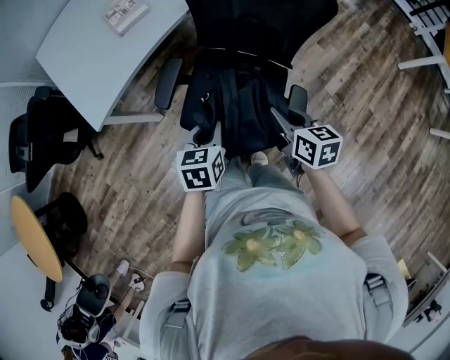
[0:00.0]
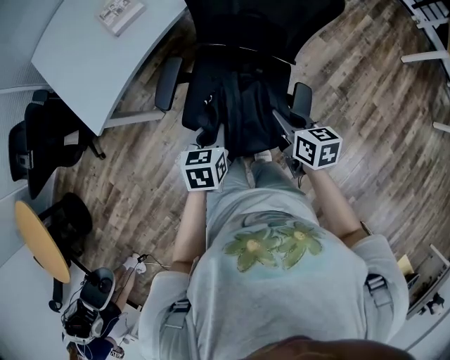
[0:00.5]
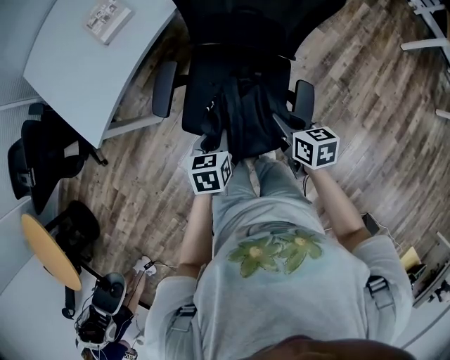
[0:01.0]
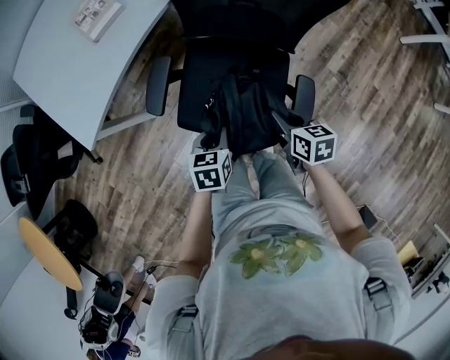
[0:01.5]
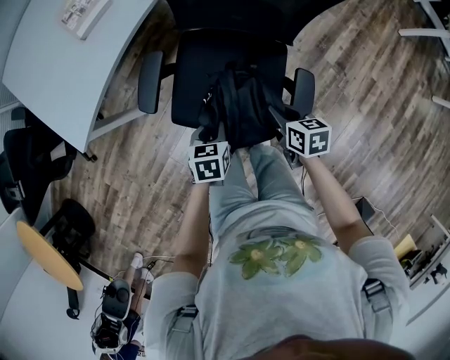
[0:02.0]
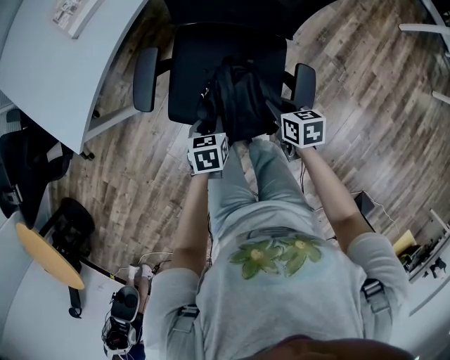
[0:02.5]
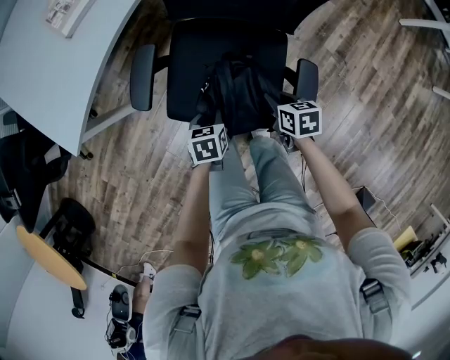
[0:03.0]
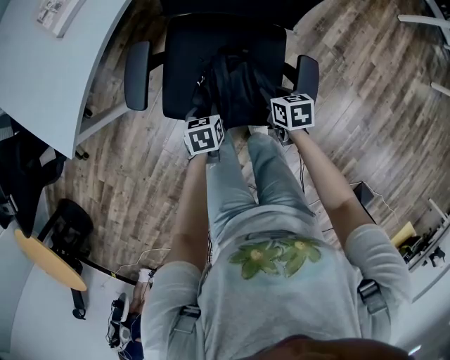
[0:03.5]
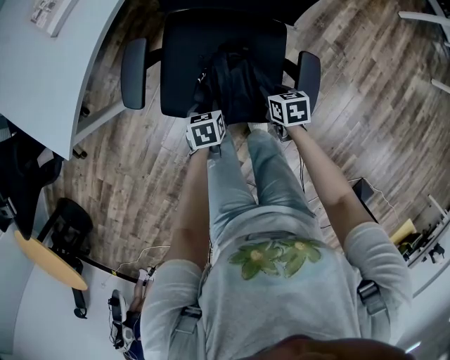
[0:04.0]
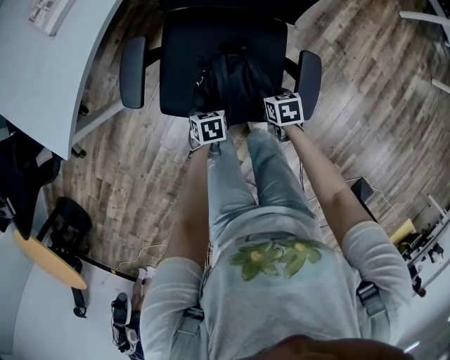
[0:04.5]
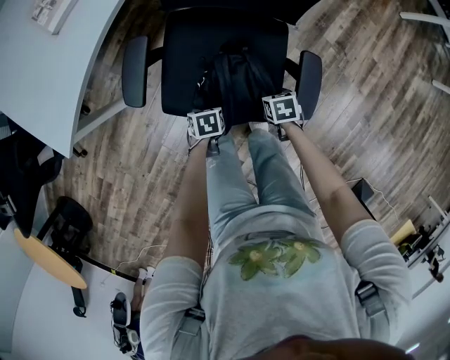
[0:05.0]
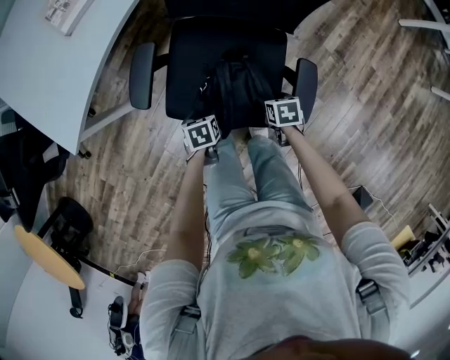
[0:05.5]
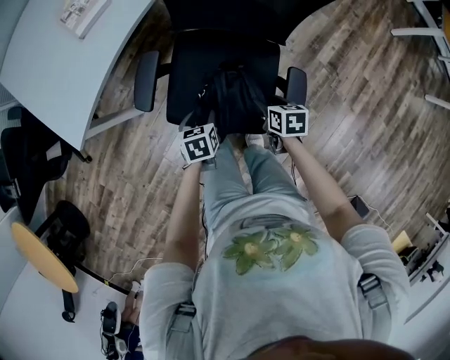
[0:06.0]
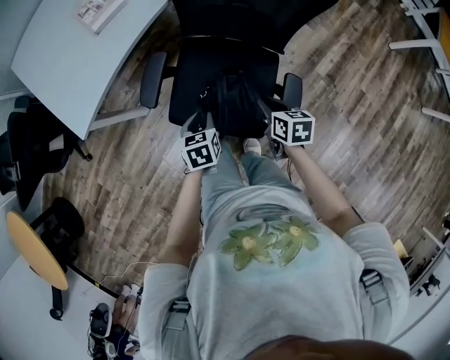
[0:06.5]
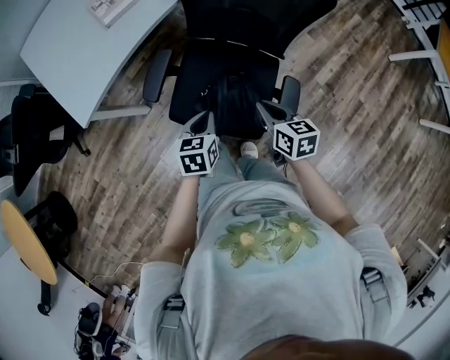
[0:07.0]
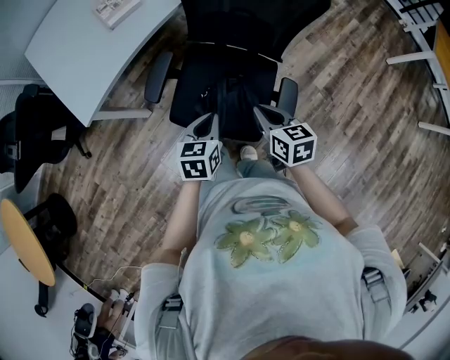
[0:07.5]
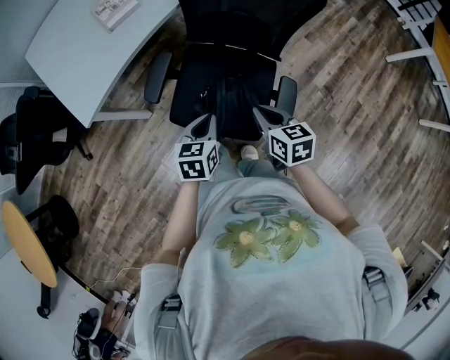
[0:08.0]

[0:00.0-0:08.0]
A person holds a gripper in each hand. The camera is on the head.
0:00.0 to 0:02.0: The two grippers go roughly 15 cm downward.
0:02.0 to 0:04.0: The grippers both shift downward by some 15 cm.
0:04.0 to 0:06.0: Both grippers move upward, about 10 cm. The left gripper opens its fingers; the right gripper opens its fingers.
0:06.0 to 0:08.0: The grippers both shift upward by some 15 cm. The left gripper turns by some 20 degrees, and closes; the right gripper swivels roughly 30 degrees, and closes its fingers.

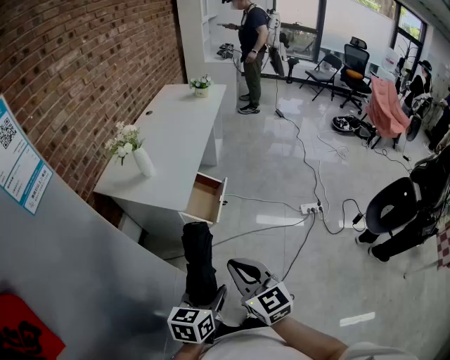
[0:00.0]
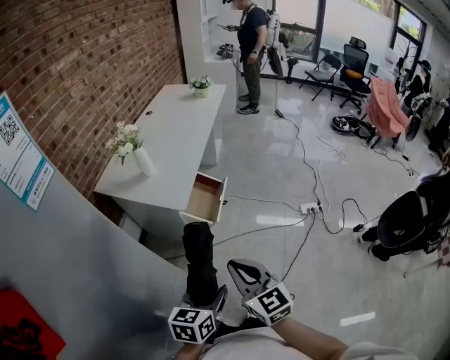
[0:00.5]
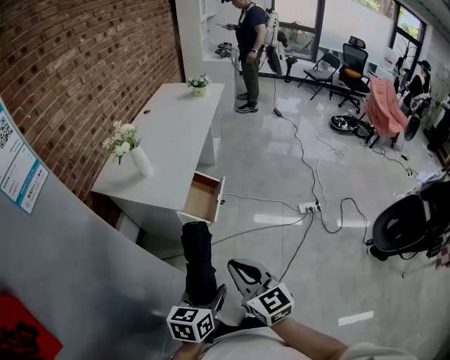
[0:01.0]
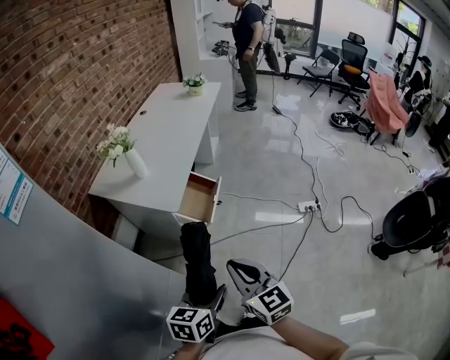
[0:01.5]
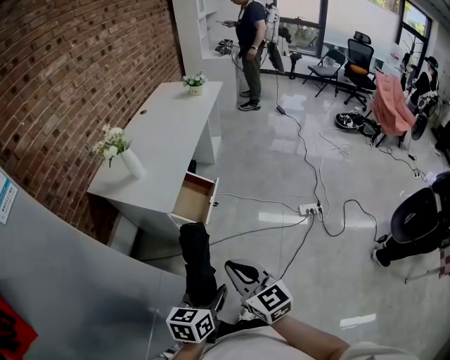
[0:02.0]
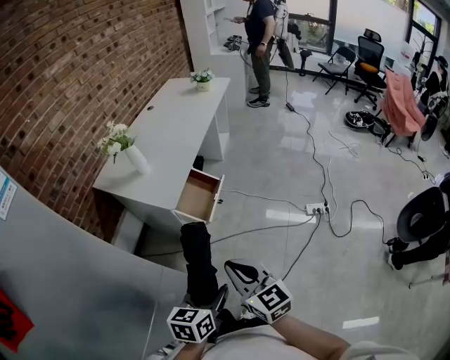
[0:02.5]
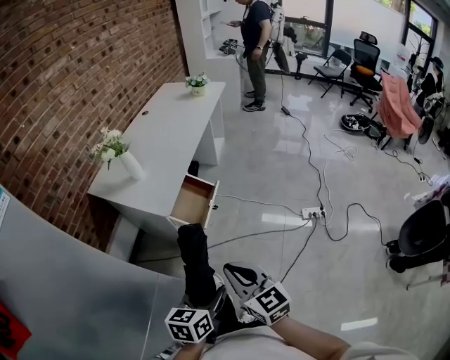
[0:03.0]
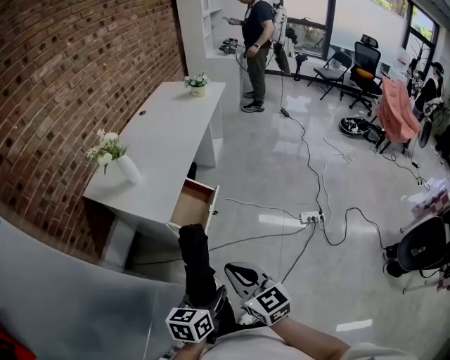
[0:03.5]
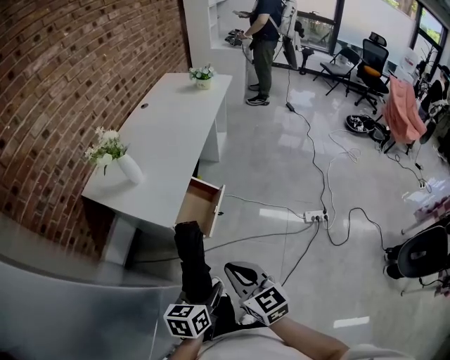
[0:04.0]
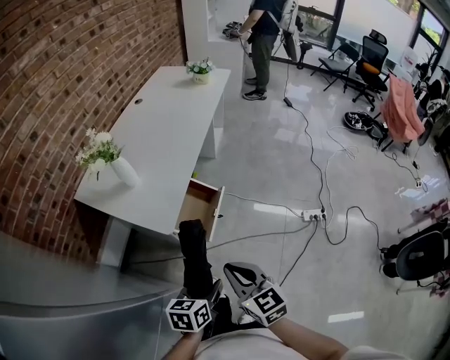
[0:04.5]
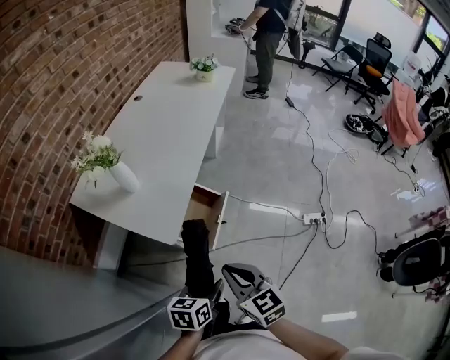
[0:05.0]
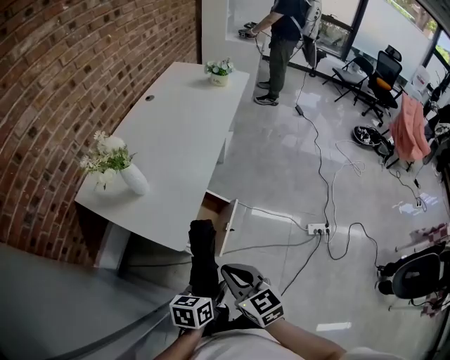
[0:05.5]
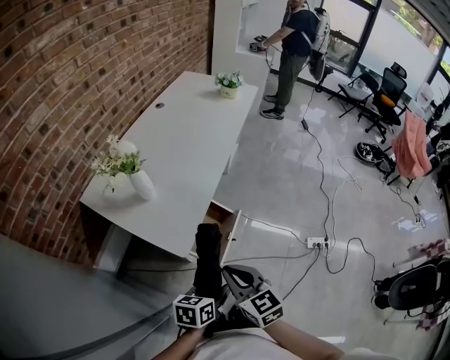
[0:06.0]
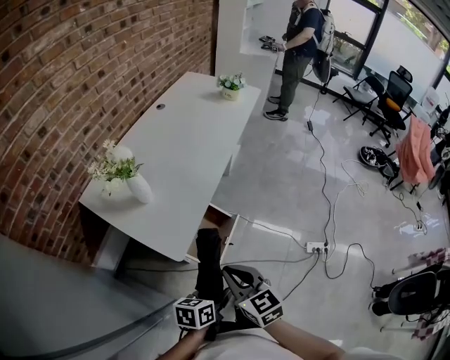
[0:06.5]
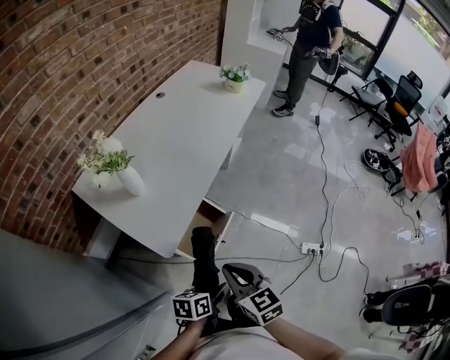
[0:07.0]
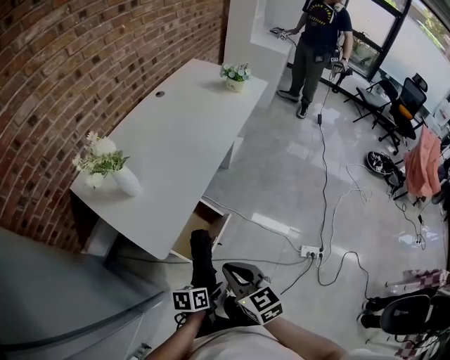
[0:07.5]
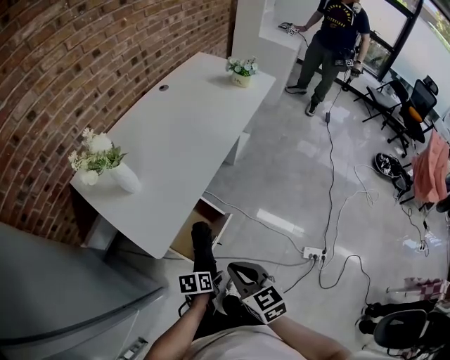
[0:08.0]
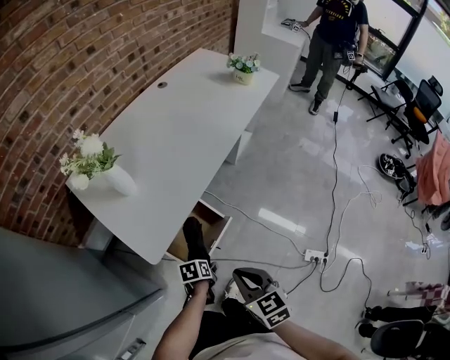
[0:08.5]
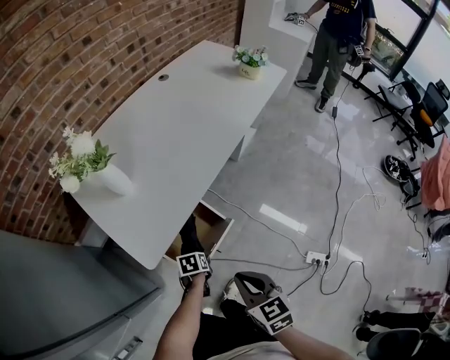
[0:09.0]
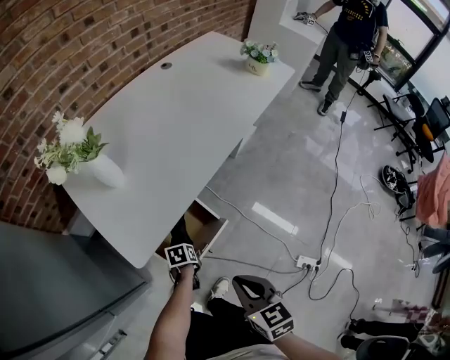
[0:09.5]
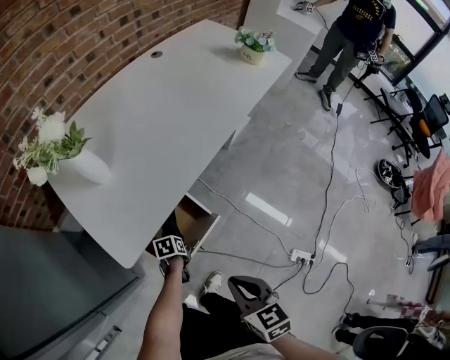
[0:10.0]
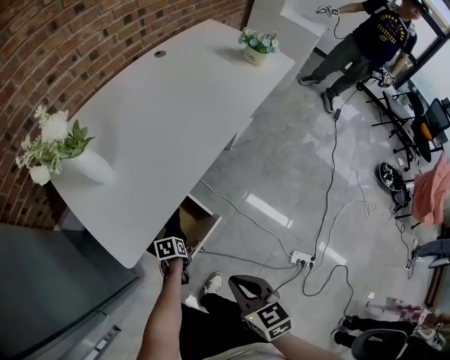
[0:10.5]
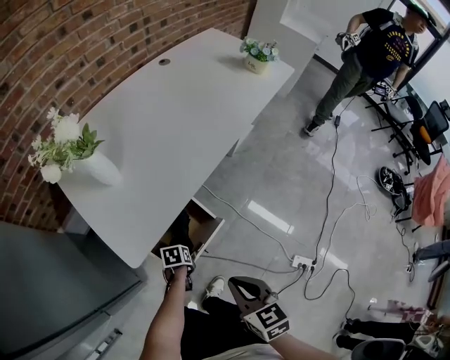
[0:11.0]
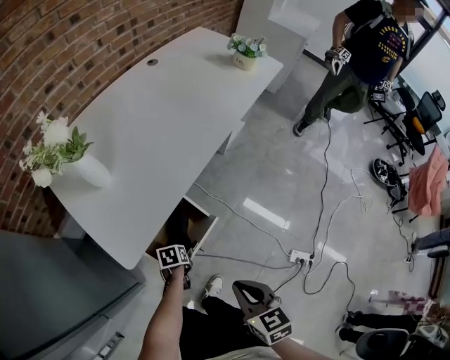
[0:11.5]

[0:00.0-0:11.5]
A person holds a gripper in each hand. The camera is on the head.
0:00.0 to 0:02.0: Both grippers move to the right, some 10 cm.
0:02.0 to 0:04.0: Both grippers travel together forward, roughly 10 cm.
0:04.0 to 0:06.0: The left gripper is displaced forward by about 15 cm. Meanwhile the right gripper moves forward and to the left, roughly 20 cm.
0:06.0 to 0:07.5: The right gripper shifts roughly 10 cm to the right and forward. The left gripper goes about 10 cm downward and to the right, and changes its angle by approximately 20 degrees.
0:07.5 to 0:09.5: The right gripper travels downward, to the right and forward by some 10 cm. Meanwhile the left gripper is displaced downward and forward by some 25 cm, and rotates roughly 30 degrees.
0:09.5 to 0:11.5: There are only small adjustments of the grippers.

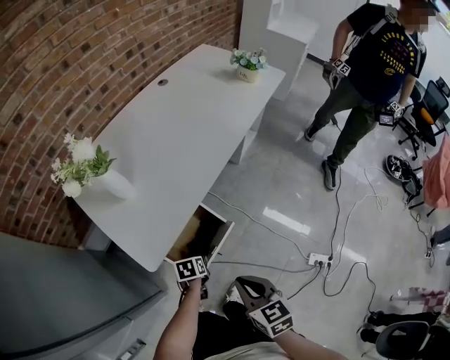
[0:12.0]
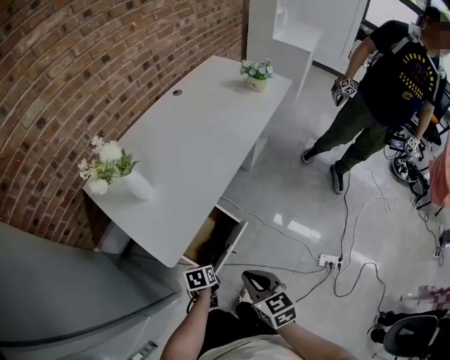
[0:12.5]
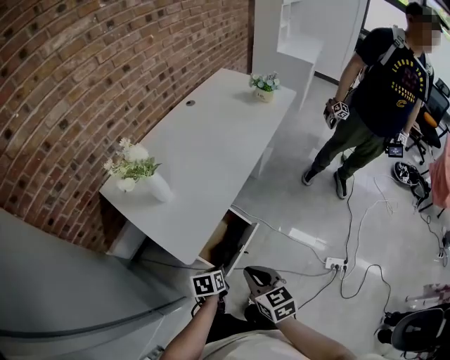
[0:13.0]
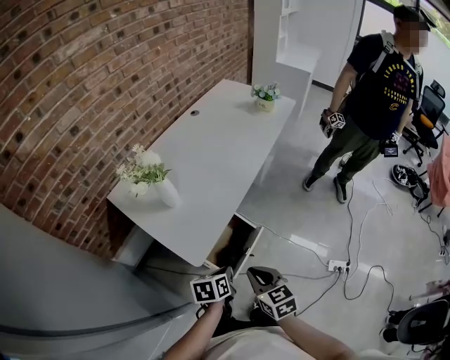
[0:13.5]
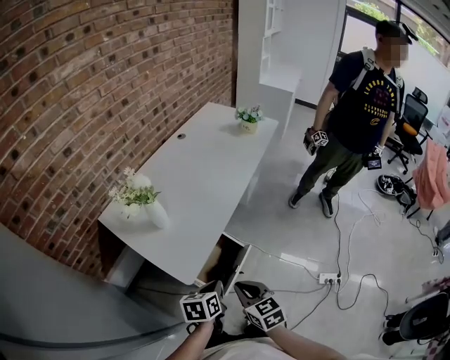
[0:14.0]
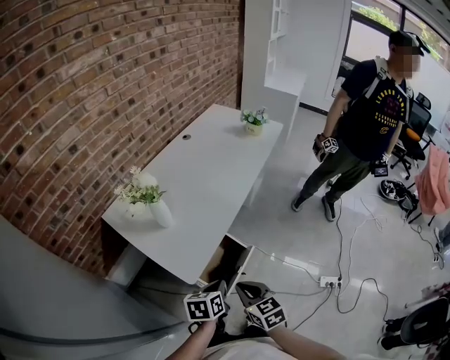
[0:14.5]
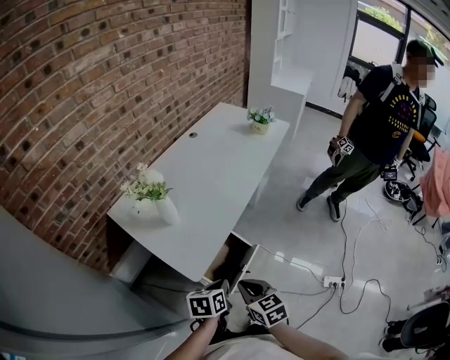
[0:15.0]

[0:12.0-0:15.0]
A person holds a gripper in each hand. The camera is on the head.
0:12.0 to 0:13.5: The left gripper travels upward by approximately 20 cm, and closes. The right gripper moves to the left, approximately 10 cm.
0:13.5 to 0:15.0: There are only small adjustments of the grippers.

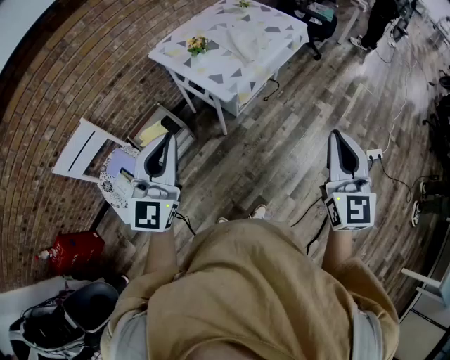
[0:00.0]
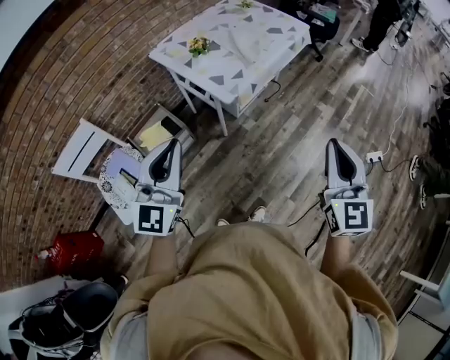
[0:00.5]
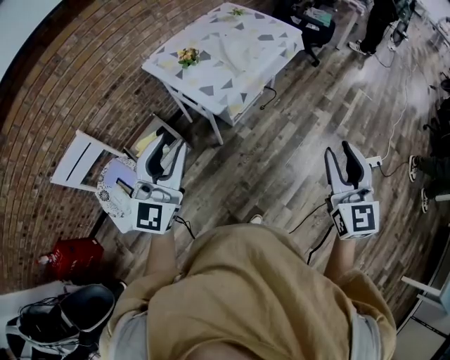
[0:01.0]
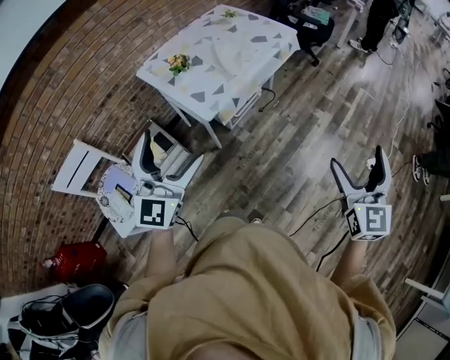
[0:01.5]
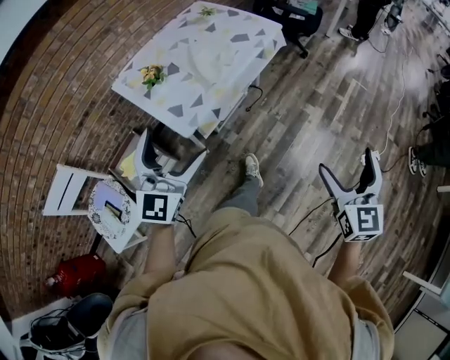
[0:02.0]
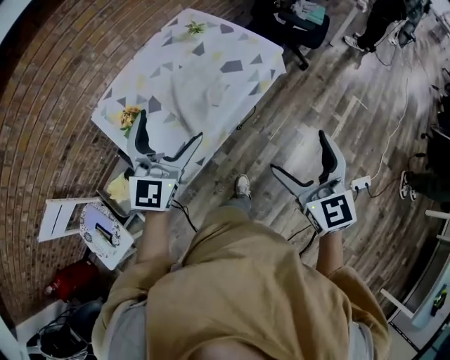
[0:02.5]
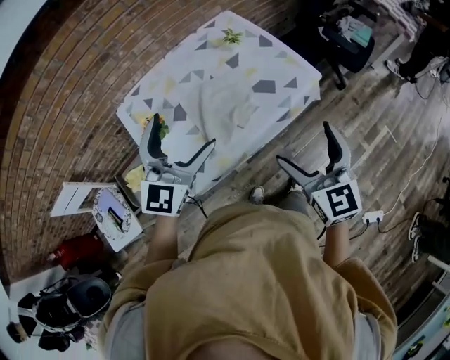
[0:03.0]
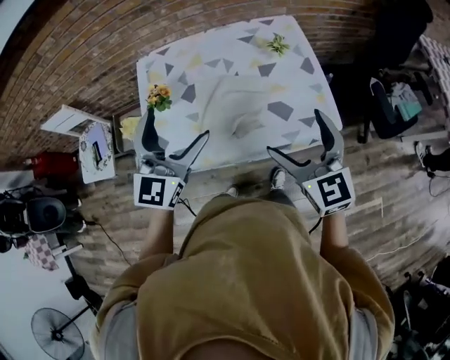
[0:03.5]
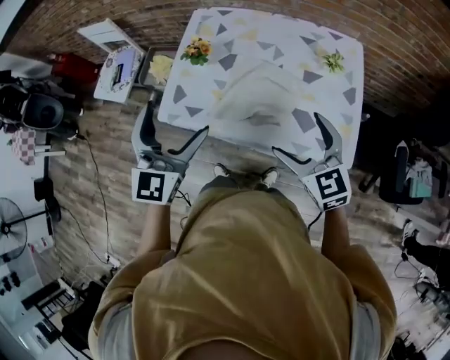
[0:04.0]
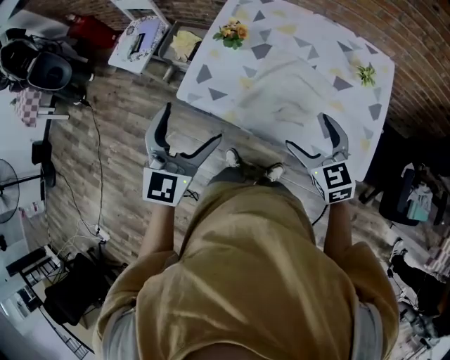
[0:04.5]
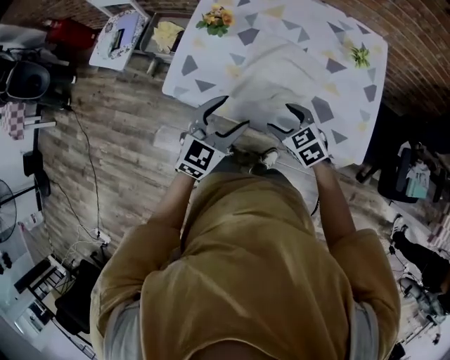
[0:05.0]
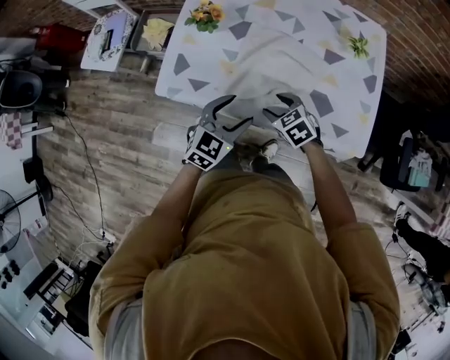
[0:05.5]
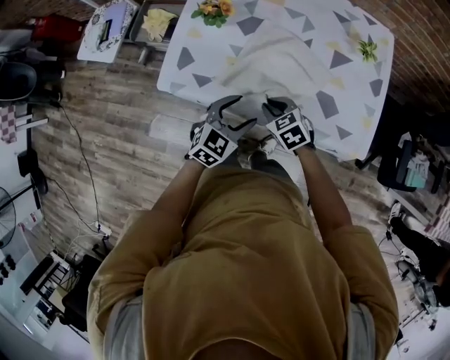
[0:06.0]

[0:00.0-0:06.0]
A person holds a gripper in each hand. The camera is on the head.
0:00.0 to 0:02.0: The right gripper heads to the right, forward and downward, covering approximately 25 cm, and opens, while the left gripper moves forward and to the right, some 25 cm, and opens its fingers.
0:02.0 to 0:04.0: The right gripper moves approximately 60 cm, and changes its angle by some 90 degrees. Meanwhile the left gripper changes place by roughly 30 cm, and swivels approximately 70 degrees.
0:04.0 to 0:06.0: The left gripper heads downward, covering some 30 cm, turns by approximately 40 degrees, and closes its fingers. Meanwhile the right gripper travels downward and to the left by roughly 30 cm, angles its fingers downward, by roughly 30 degrees, and closes.
